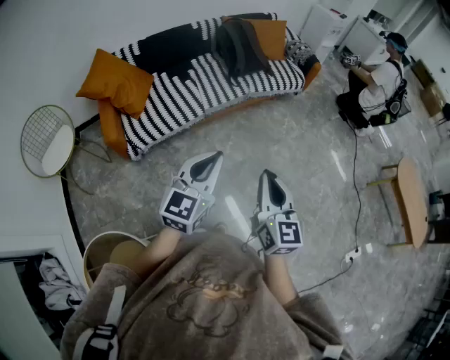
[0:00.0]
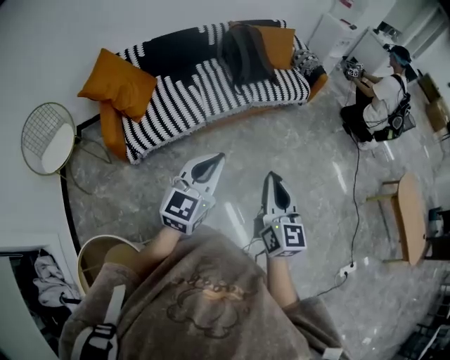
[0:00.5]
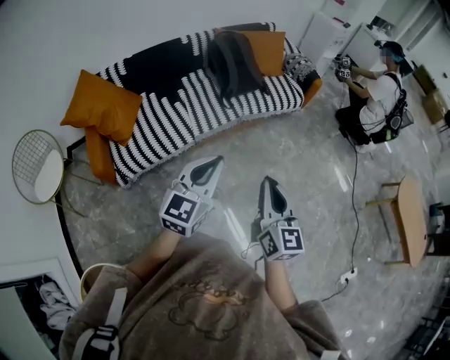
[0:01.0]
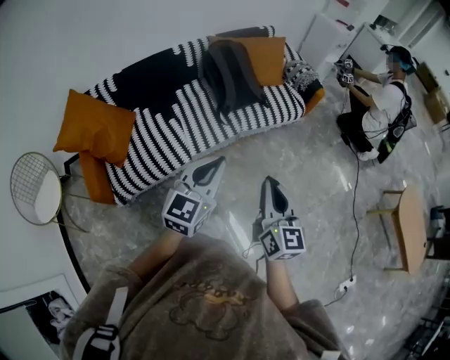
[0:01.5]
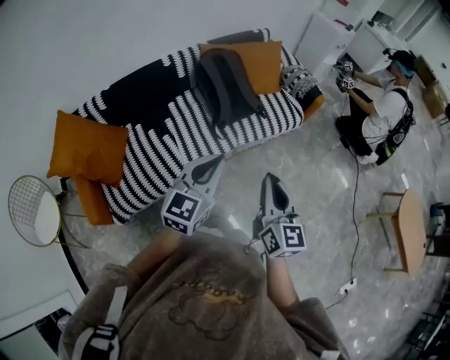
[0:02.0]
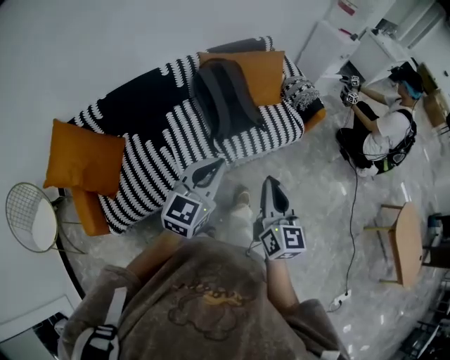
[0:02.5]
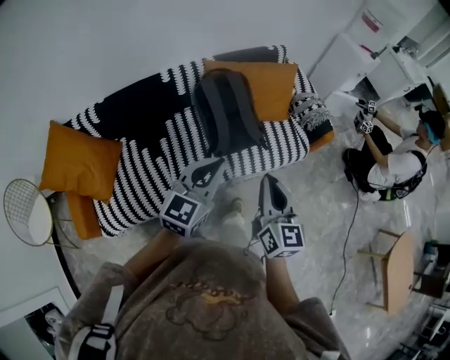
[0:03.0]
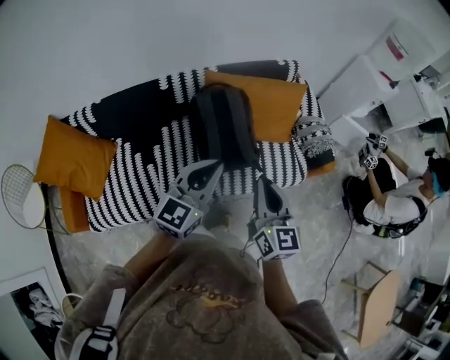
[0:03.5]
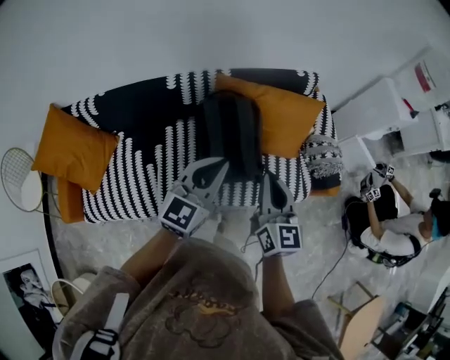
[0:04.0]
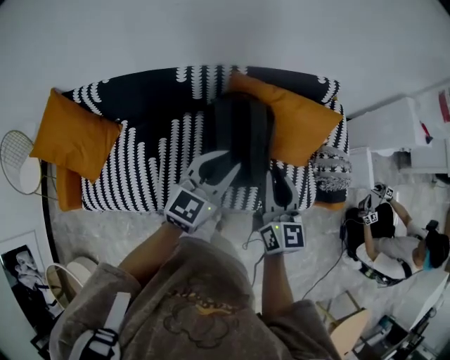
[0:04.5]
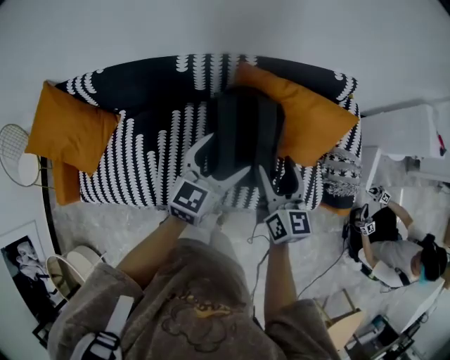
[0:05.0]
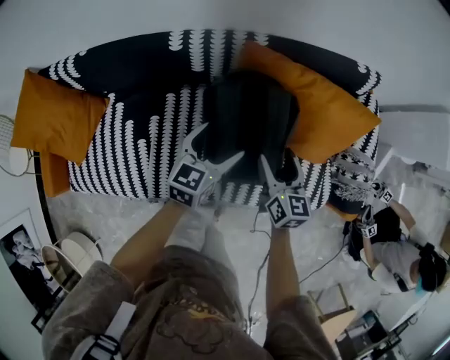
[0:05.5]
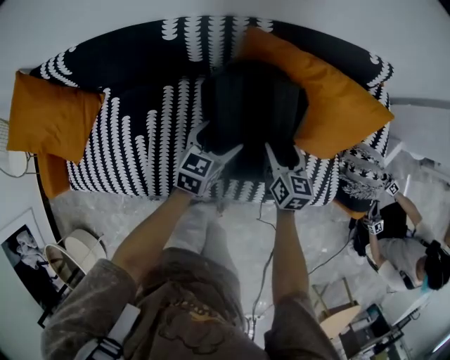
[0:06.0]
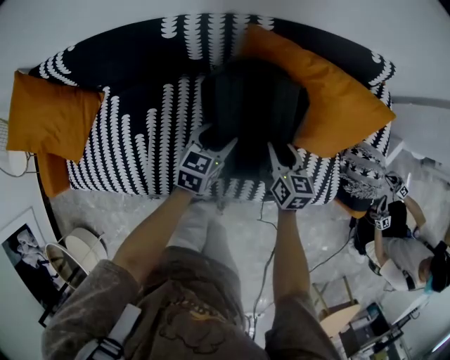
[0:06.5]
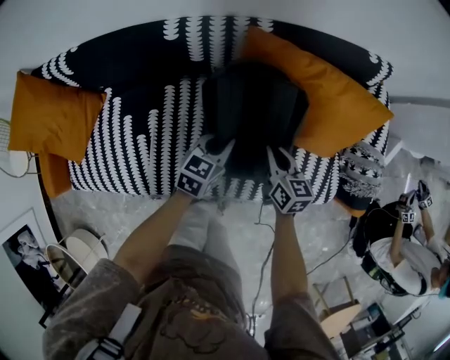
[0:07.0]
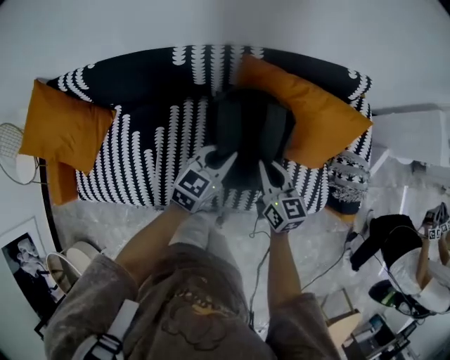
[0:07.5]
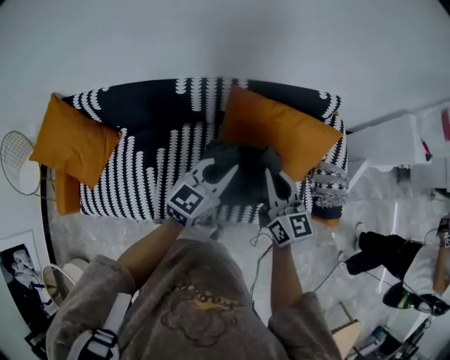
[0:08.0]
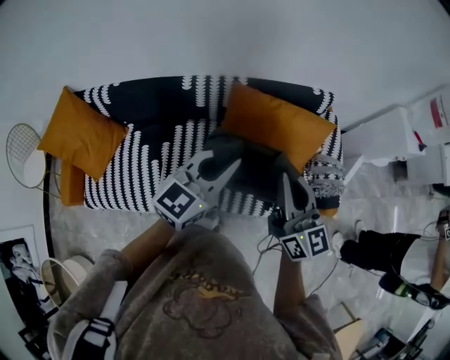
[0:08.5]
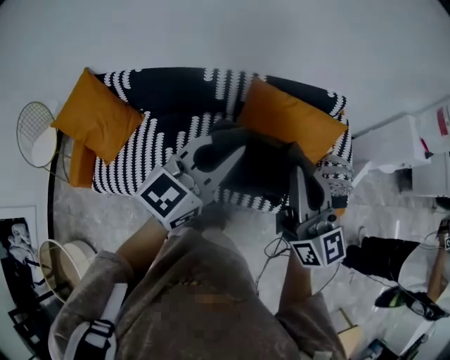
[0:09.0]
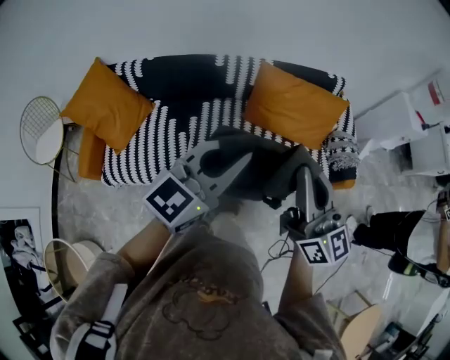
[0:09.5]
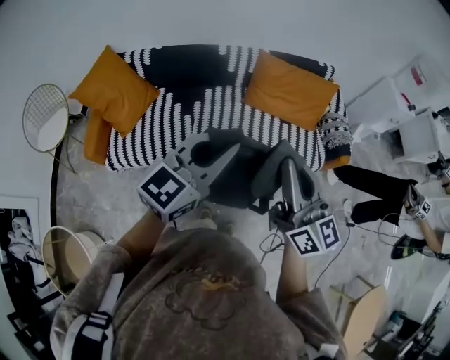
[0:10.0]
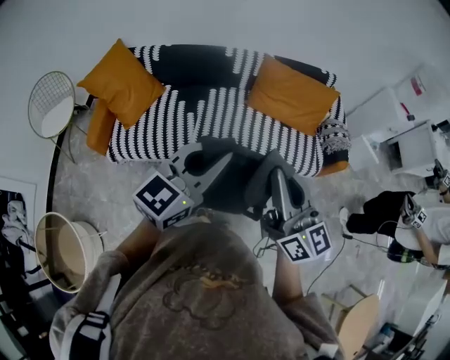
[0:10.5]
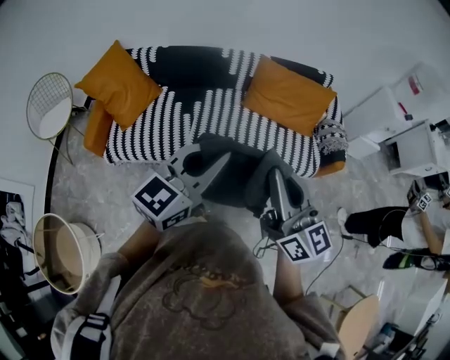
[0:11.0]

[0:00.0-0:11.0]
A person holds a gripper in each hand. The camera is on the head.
0:00.0 to 0:02.0: The pair of grippers is taken forward, some 50 cm.
0:02.0 to 0:03.5: The grippers both shift forward by some 35 cm.
0:03.5 to 0:05.5: The right gripper is displaced forward and downward by about 40 cm, turns by about 20 degrees, and opens up, while the left gripper is displaced downward and forward by about 40 cm, swivels about 30 degrees, and opens its fingers.
0:05.5 to 0:07.5: The left gripper goes downward and returns, about 10 cm each way, and closes. Meanwhile the right gripper moves some 10 cm downward and comes back, and closes up.
0:07.5 to 0:09.0: The two grippers go about 40 cm upward and backward. The right gripper tilts its fingers approximately 30 degrees upward, while the left gripper changes its angle by approximately 30 degrees.
0:09.0 to 0:11.0: Both grippers travel together backward, approximately 40 cm.

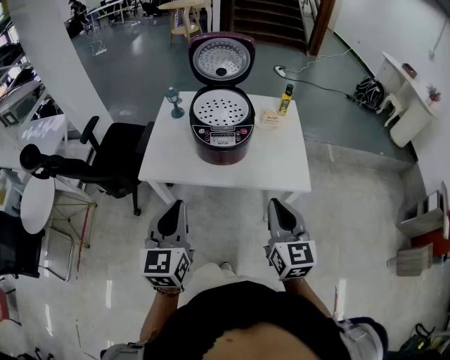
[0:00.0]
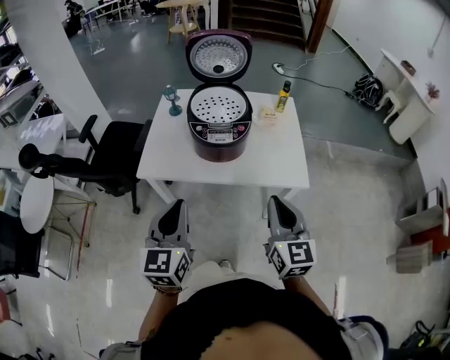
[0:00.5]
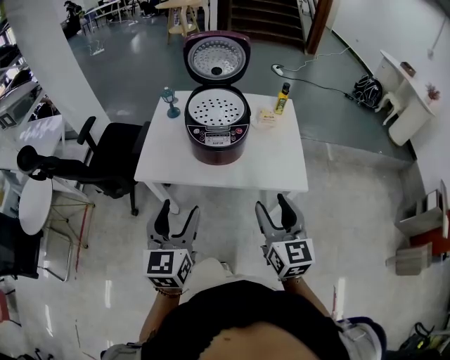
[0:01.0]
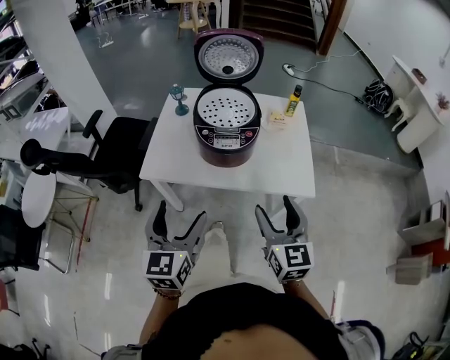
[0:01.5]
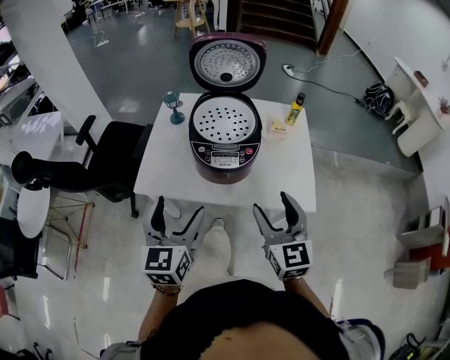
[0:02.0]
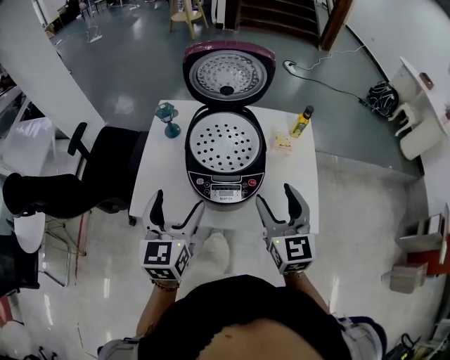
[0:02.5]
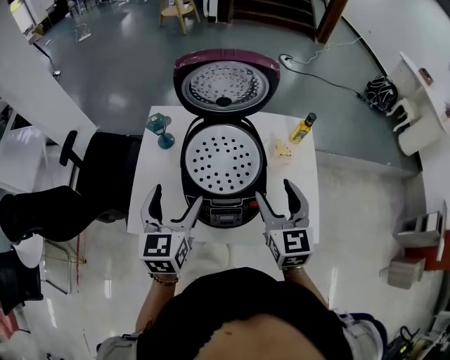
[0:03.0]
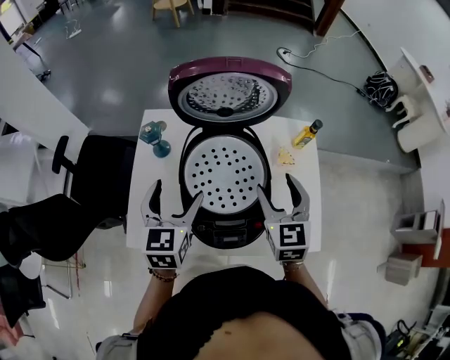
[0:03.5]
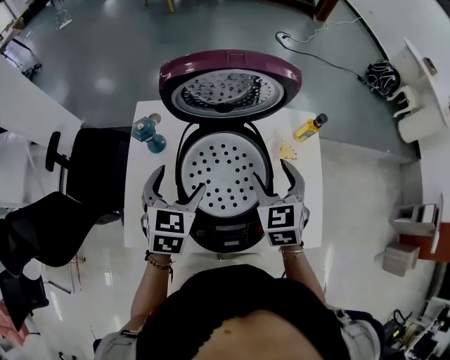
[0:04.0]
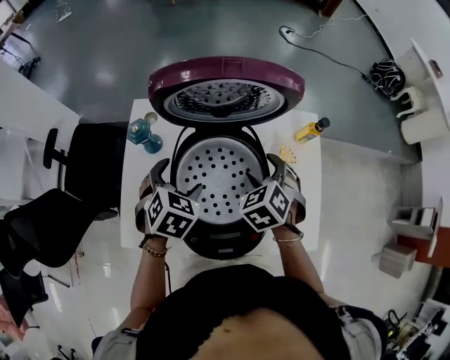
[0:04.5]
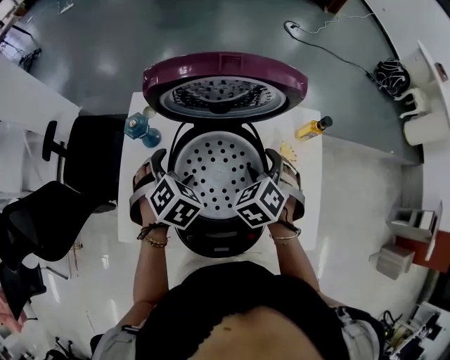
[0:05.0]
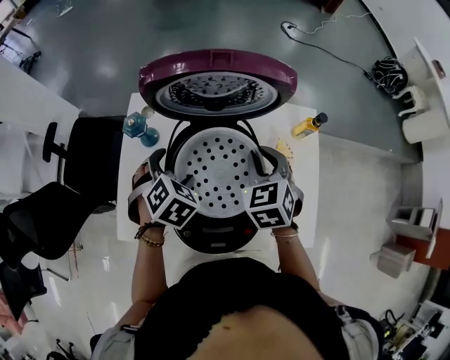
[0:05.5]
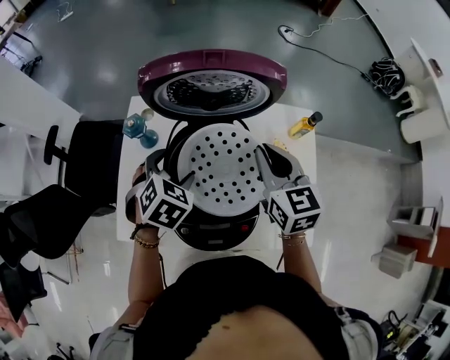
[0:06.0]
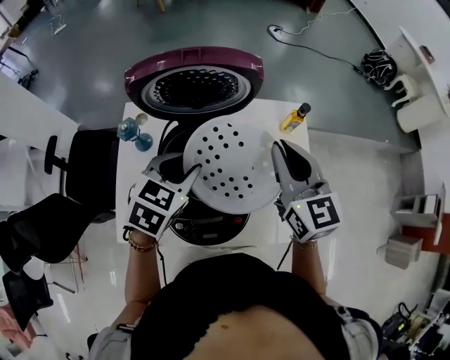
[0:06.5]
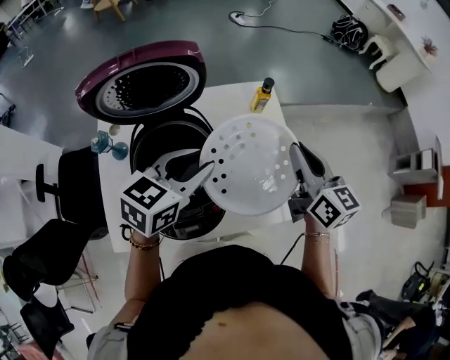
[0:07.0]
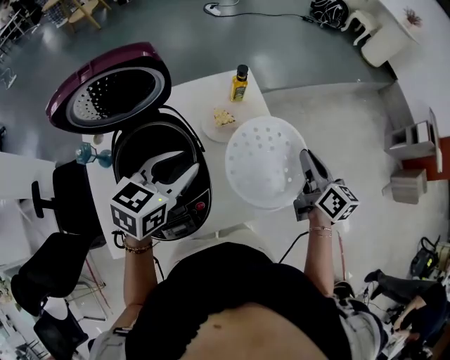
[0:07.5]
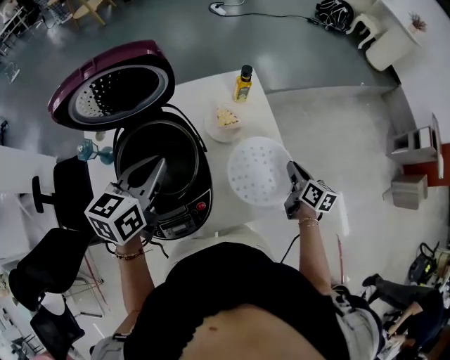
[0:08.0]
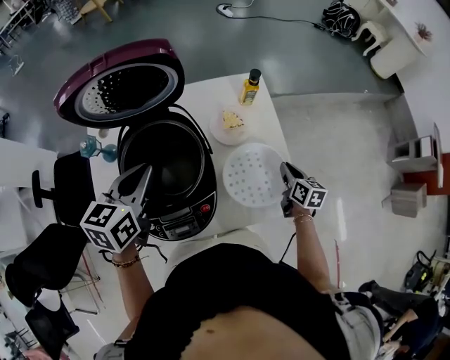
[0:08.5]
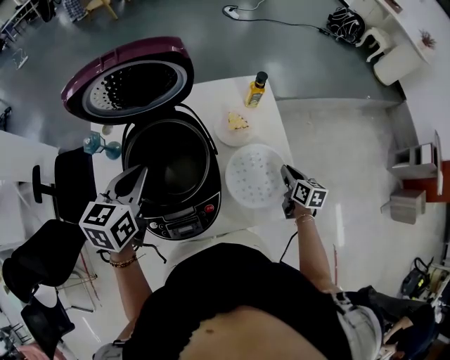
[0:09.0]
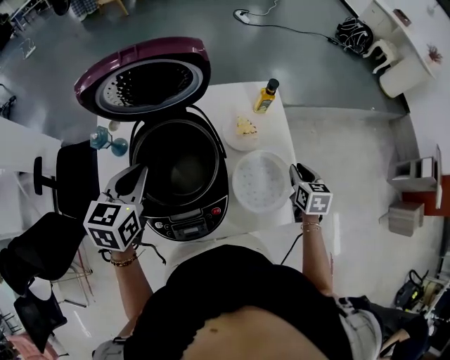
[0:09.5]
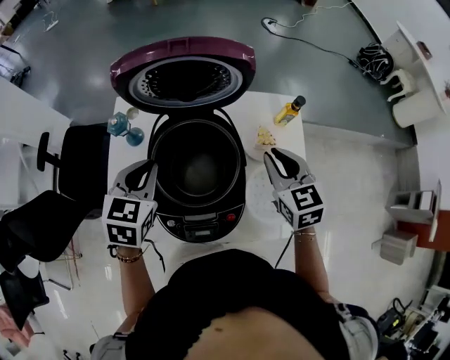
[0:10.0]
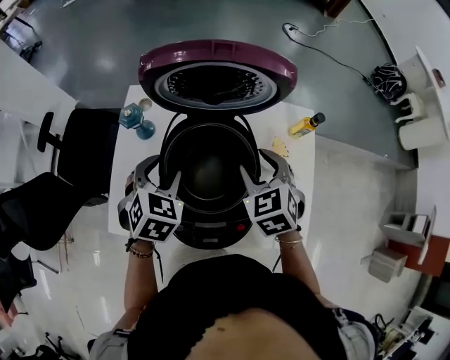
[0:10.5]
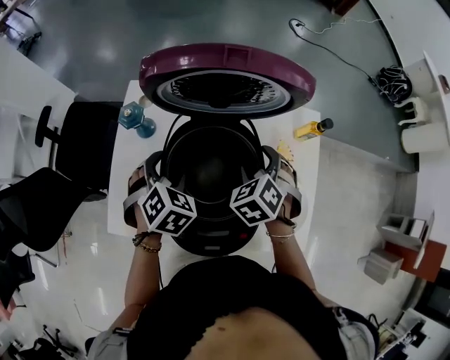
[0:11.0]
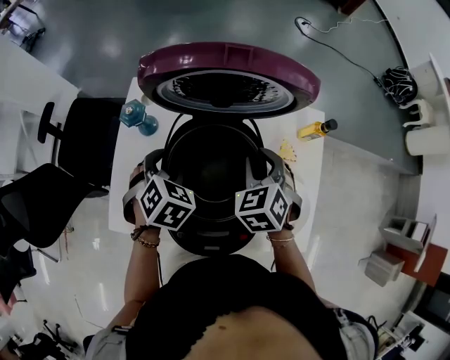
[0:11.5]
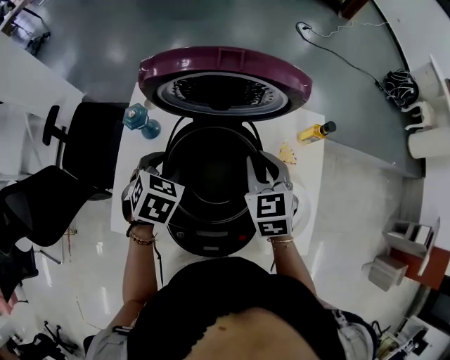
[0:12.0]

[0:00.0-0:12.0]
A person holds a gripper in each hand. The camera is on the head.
0:00.0 to 0:02.0: The two grippers go some 10 cm forward. The right gripper opens its fingers, while the left gripper opens up.
0:02.0 to 0:04.0: The grippers both shift forward by some 35 cm. The right gripper rotates about 30 degrees. Meanwhile the left gripper changes its angle by some 30 degrees.
0:04.0 to 0:06.0: The right gripper goes about 5 cm upward, rotates some 30 degrees, and closes. The left gripper rotates approximately 30 degrees.
0:06.0 to 0:08.0: The right gripper ends up roughly 40 cm from where it was, and rotates around the line of its fingers by about 50 degrees, clockwise from behind. Meanwhile the left gripper moves some 15 cm, swivels approximately 50 degrees, and closes.
0:08.0 to 0:10.0: The right gripper changes place by roughly 30 cm, and rolls counterclockwise, seen from behind, by approximately 50 degrees, while the left gripper shifts by approximately 15 cm, and turns by roughly 30 degrees.
0:10.0 to 0:12.0: The left gripper goes approximately 5 cm downward, and rotates about 20 degrees; the right gripper is displaced to the left and forward by approximately 10 cm, and opens and closes again.

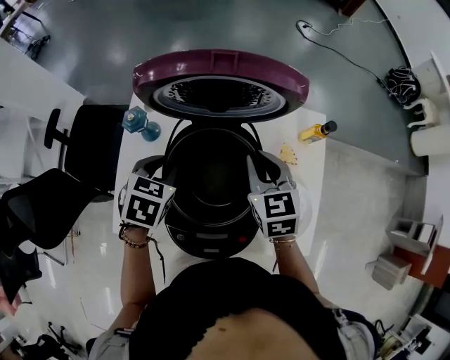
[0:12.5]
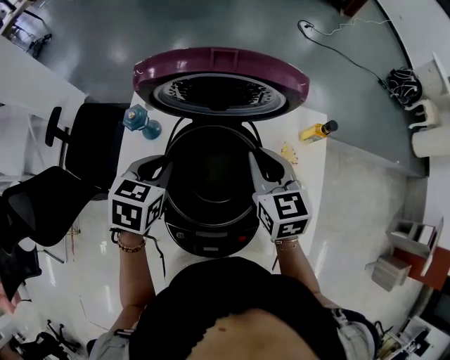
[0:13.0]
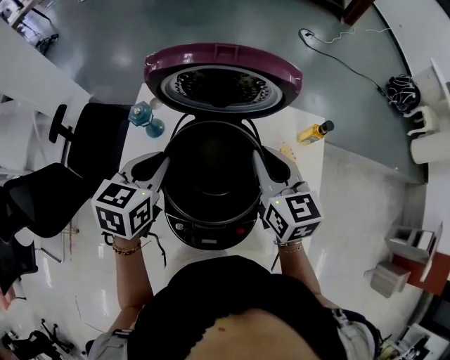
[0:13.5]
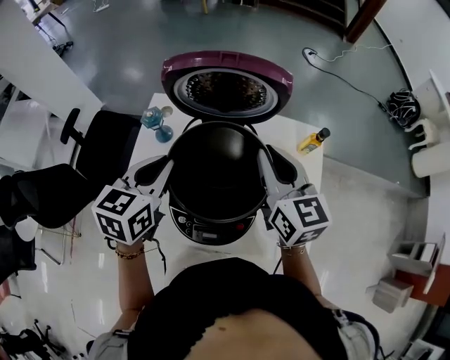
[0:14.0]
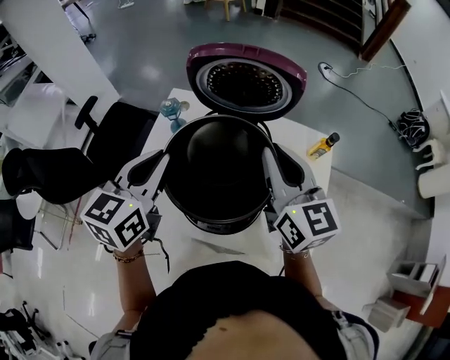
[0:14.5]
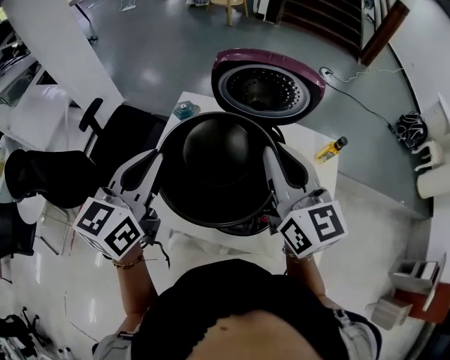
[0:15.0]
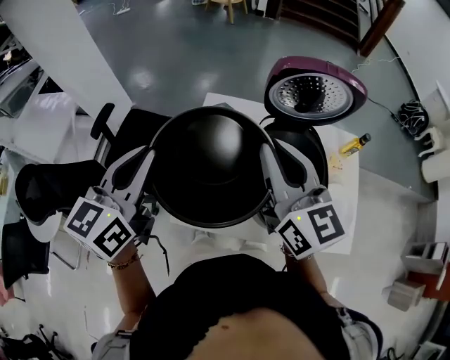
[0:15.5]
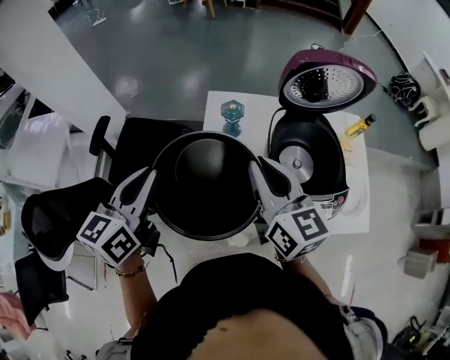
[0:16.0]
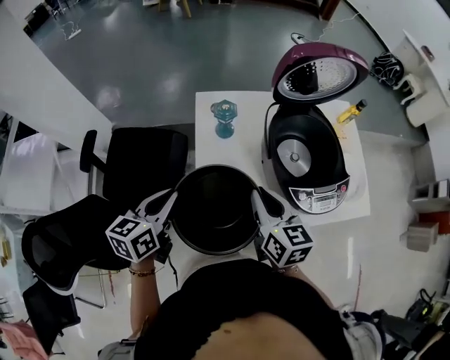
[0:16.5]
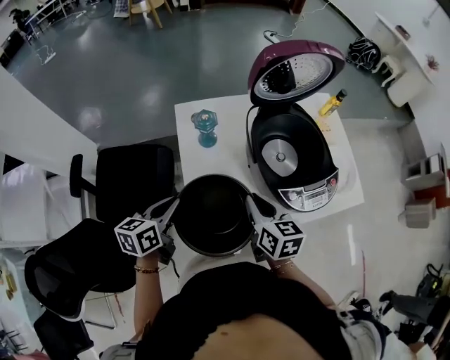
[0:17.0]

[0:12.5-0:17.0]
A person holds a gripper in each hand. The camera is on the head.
0:12.5 to 0:14.5: Both grippers travel together upward and backward, about 20 cm. The right gripper turns by some 30 degrees. Meanwhile the left gripper tips its fingers upward by about 40 degrees.
0:14.5 to 0:17.0: The right gripper ends up approximately 35 cm from where it was, and turns by roughly 40 degrees, while the left gripper ends up about 35 cm from where it was, and turns by some 40 degrees.
